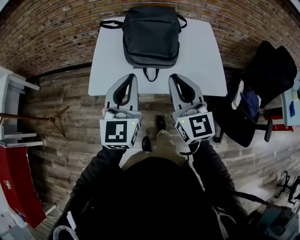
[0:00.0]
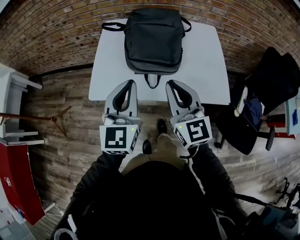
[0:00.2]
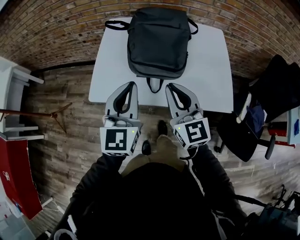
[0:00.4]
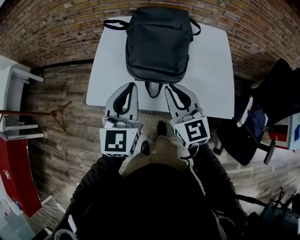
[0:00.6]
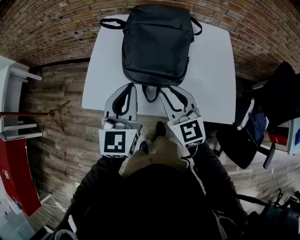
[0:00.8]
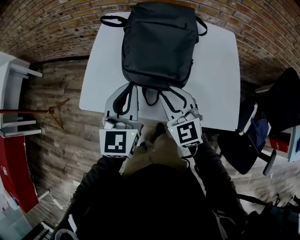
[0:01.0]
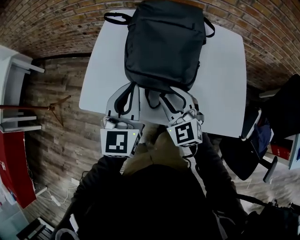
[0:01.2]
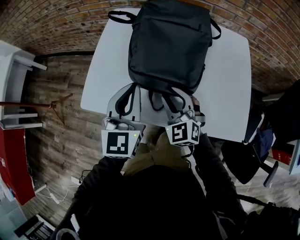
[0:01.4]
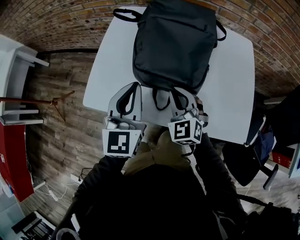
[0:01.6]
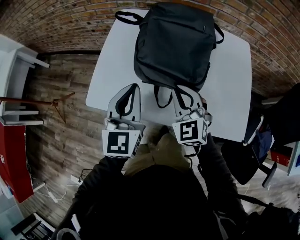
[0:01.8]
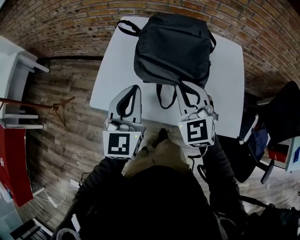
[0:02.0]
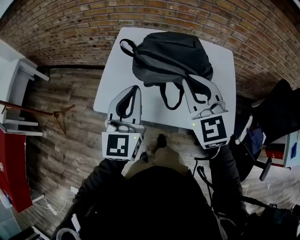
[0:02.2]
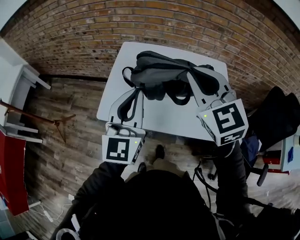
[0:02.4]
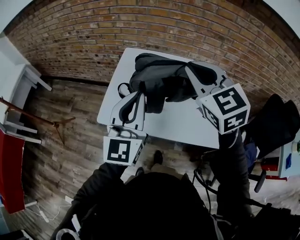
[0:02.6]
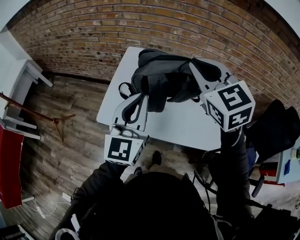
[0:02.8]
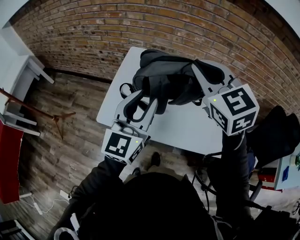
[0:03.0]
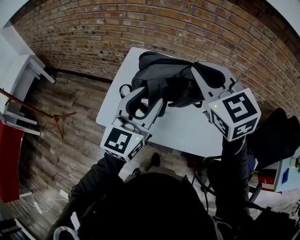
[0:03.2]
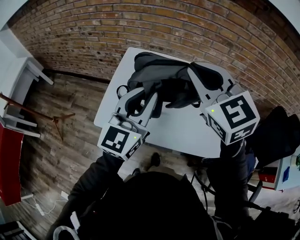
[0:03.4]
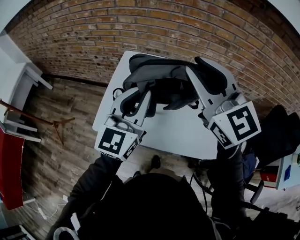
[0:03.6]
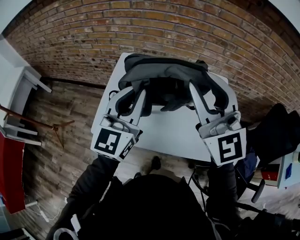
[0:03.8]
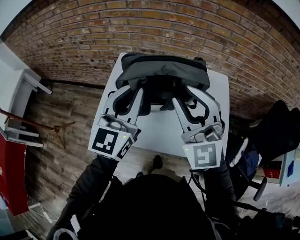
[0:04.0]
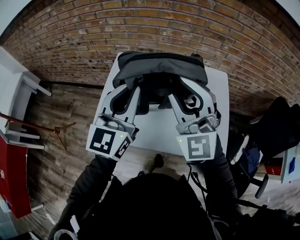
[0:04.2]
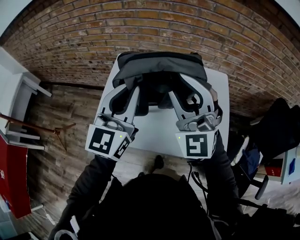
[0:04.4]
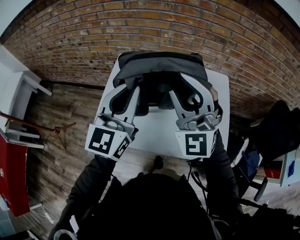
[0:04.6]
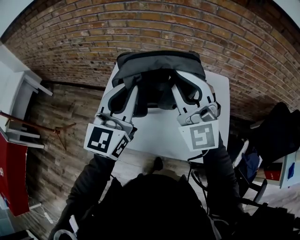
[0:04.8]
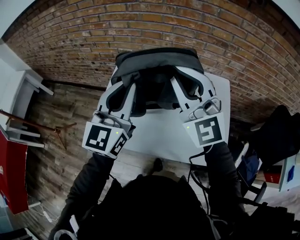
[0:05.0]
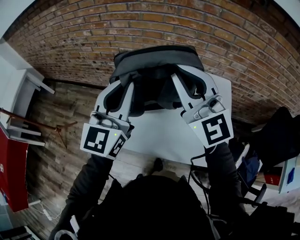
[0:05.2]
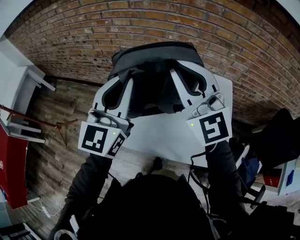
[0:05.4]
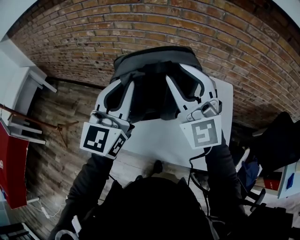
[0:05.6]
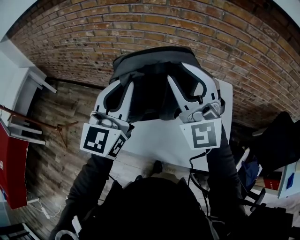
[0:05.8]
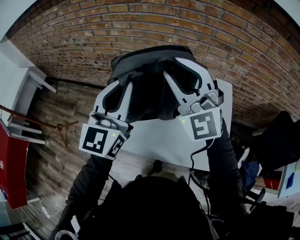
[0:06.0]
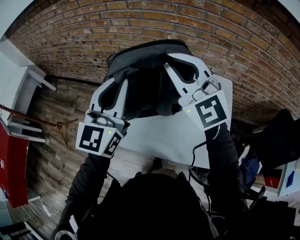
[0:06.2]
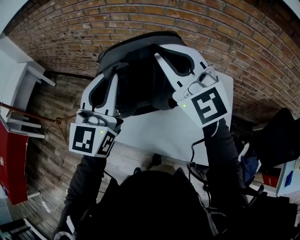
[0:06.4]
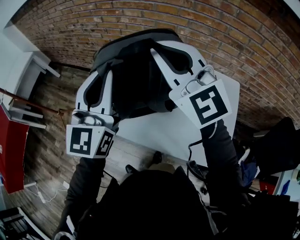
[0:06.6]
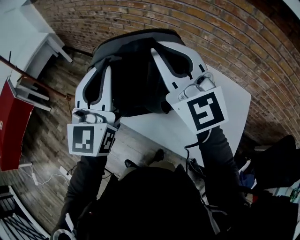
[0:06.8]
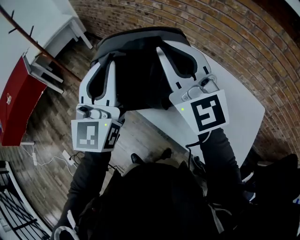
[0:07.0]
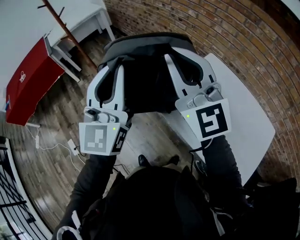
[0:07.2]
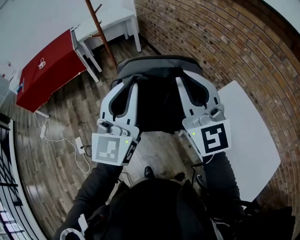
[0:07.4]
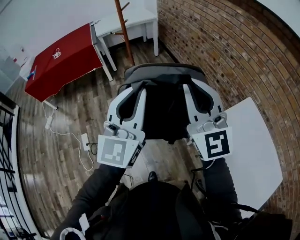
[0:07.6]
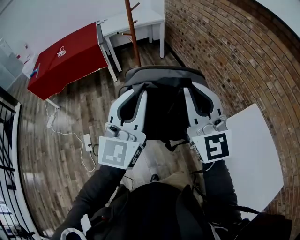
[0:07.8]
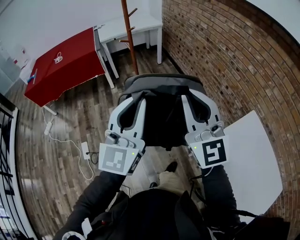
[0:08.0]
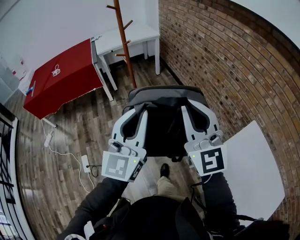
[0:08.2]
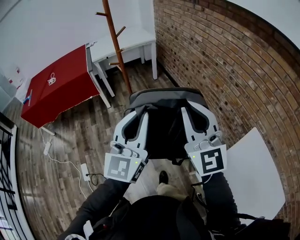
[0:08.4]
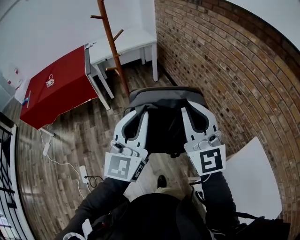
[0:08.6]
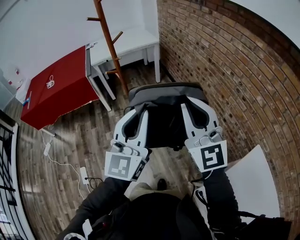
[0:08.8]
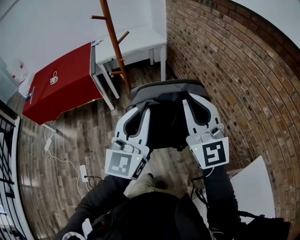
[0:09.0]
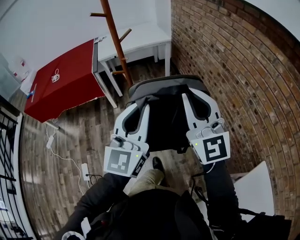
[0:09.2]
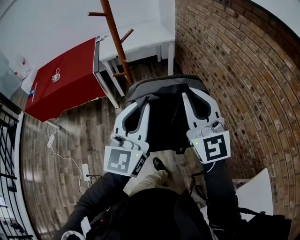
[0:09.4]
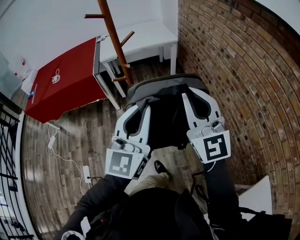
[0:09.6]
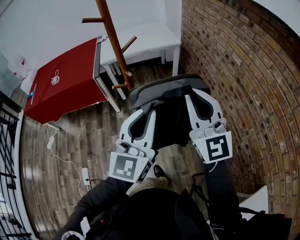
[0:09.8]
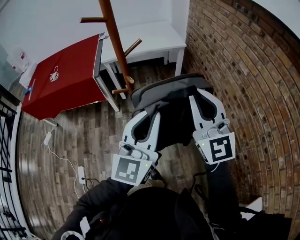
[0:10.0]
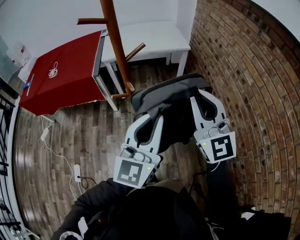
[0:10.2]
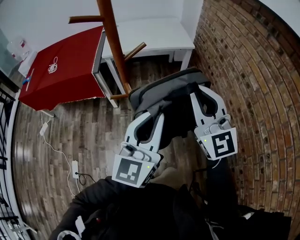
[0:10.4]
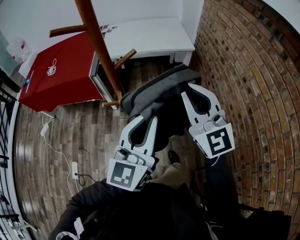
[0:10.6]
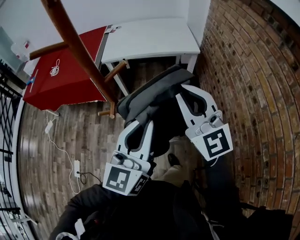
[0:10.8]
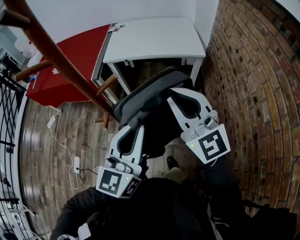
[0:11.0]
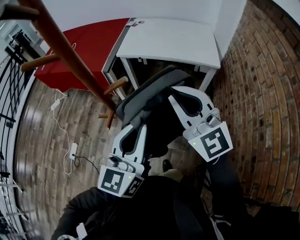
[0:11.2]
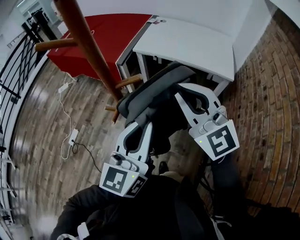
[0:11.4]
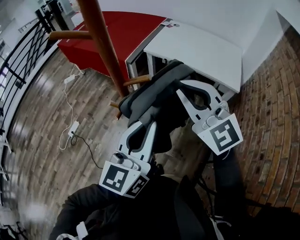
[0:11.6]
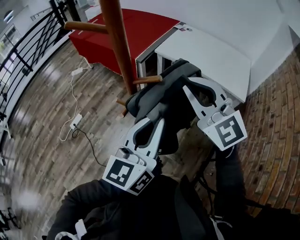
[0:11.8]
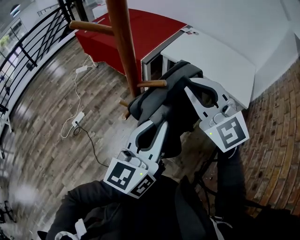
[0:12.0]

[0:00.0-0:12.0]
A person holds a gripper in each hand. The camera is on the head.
0:00.0 to 0:01.6: The left gripper moves forward and downward, about 20 cm; the right gripper shifts about 30 cm downward and forward, rotates some 40 degrees, and opens, then closes again.
0:01.6 to 0:03.0: The left gripper shifts roughly 20 cm upward, and opens. Meanwhile the right gripper travels upward by about 35 cm.
0:03.0 to 0:04.4: The left gripper travels forward by approximately 10 cm. Meanwhile the right gripper changes its angle by about 40 degrees, and opens.
0:04.4 to 0:06.0: The right gripper is displaced forward by about 5 cm, and closes, then reopens.
0:06.0 to 0:07.6: Both grippers are carried about 60 cm. The right gripper rotates approximately 60 degrees, and closes up, while the left gripper rotates some 50 degrees.
0:07.6 to 0:09.0: Both grippers travel together forward, roughly 35 cm.
0:09.0 to 0:10.4: The grippers both shift forward by roughly 35 cm.
0:10.4 to 0:12.0: The left gripper moves approximately 15 cm, and changes its angle by about 40 degrees, while the right gripper ends up about 20 cm from where it was, and rotates about 60 degrees.

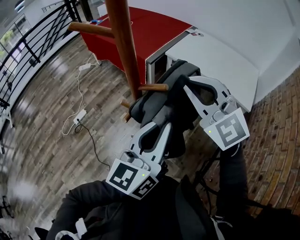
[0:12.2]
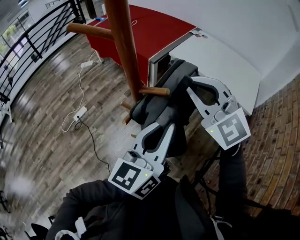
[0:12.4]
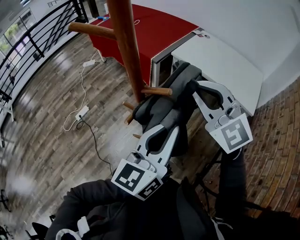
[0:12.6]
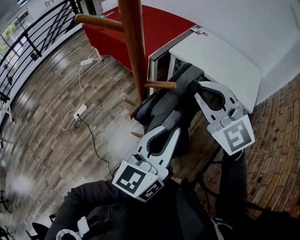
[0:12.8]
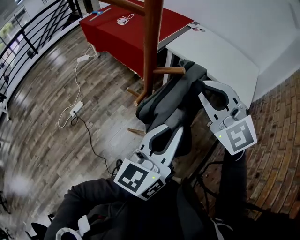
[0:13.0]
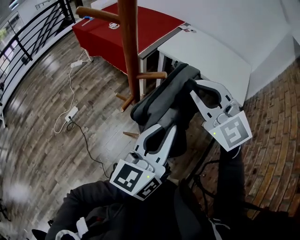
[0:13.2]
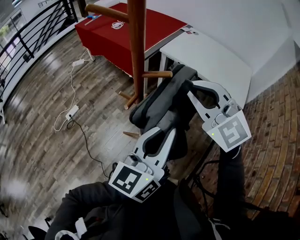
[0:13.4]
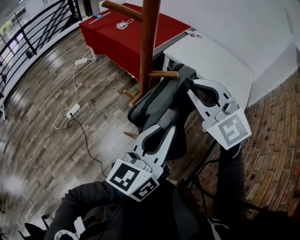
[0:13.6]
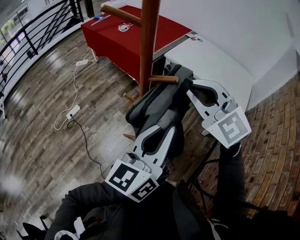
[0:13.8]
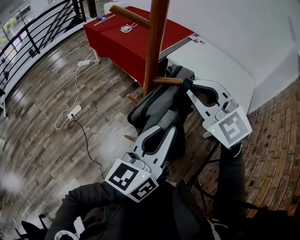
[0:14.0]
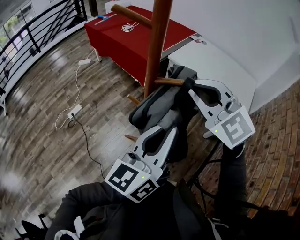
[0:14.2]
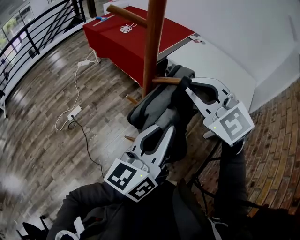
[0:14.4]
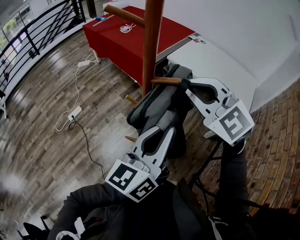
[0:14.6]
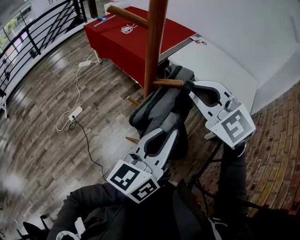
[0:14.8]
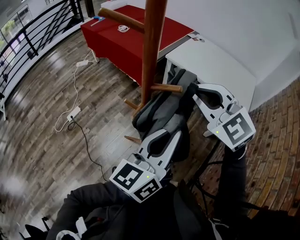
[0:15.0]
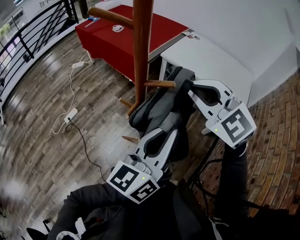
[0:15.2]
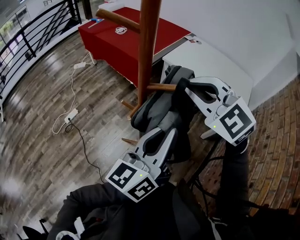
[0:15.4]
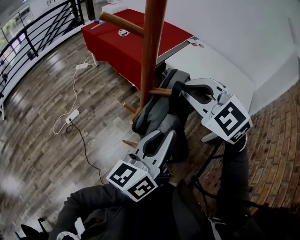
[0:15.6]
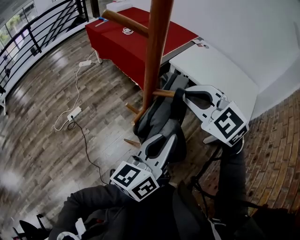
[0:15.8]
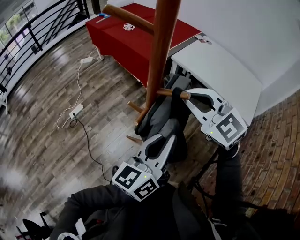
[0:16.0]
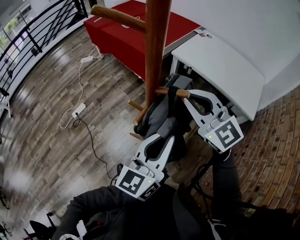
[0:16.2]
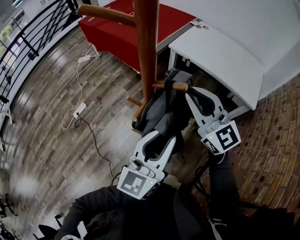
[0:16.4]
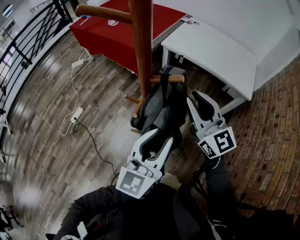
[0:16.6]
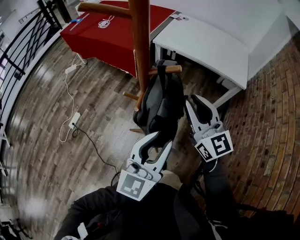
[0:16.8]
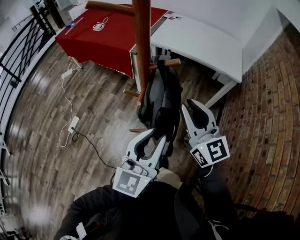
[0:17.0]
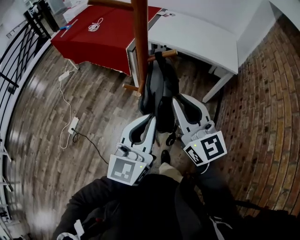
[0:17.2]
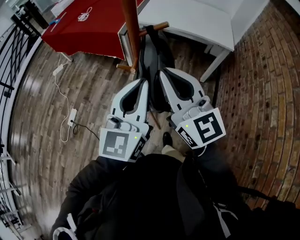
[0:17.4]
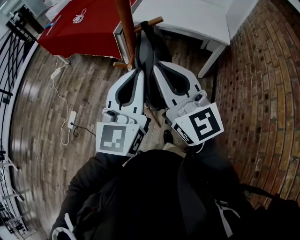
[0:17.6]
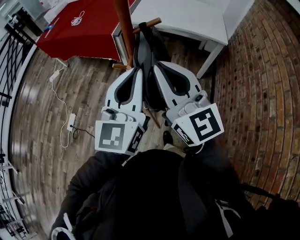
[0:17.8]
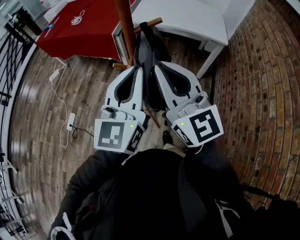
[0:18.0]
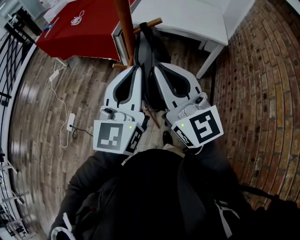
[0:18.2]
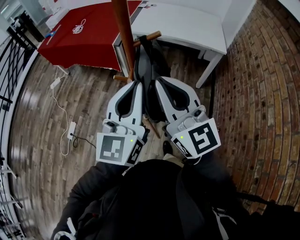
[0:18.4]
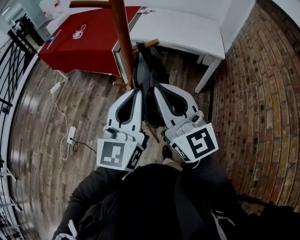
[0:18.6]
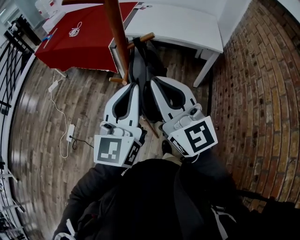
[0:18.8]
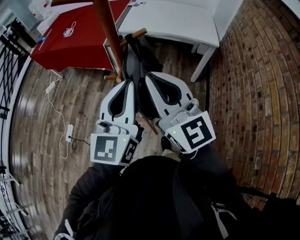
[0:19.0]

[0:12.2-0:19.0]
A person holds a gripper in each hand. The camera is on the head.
0:12.2 to 0:15.0: The grippers move only a little.
0:15.0 to 0:16.2: The left gripper shifts roughly 5 cm downward; the right gripper shifts by approximately 5 cm, and swivels about 20 degrees.
0:16.2 to 0:17.6: The right gripper is displaced backward by about 15 cm, and swivels about 40 degrees, while the left gripper shifts about 10 cm to the left and upward, and rotates about 20 degrees.
0:17.6 to 0:19.0: Both grippers stay put.

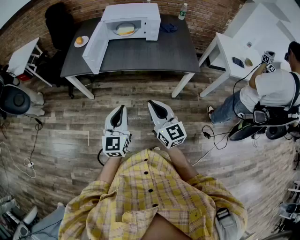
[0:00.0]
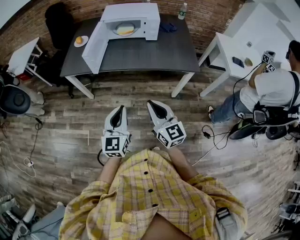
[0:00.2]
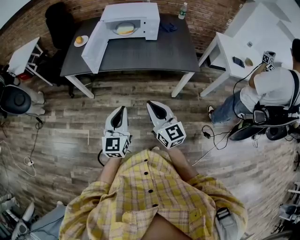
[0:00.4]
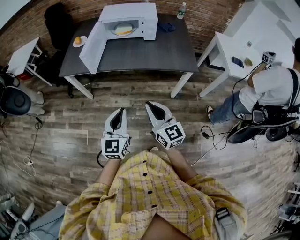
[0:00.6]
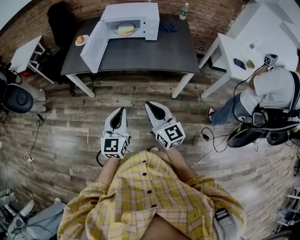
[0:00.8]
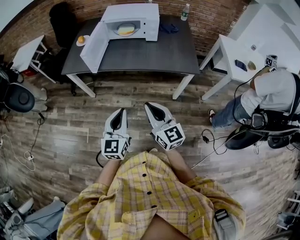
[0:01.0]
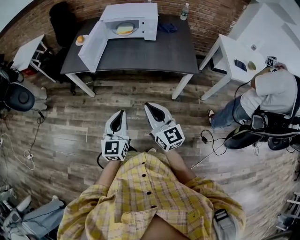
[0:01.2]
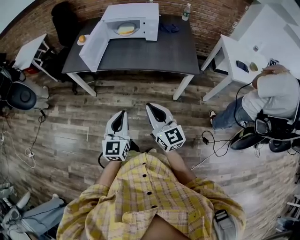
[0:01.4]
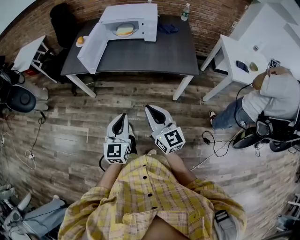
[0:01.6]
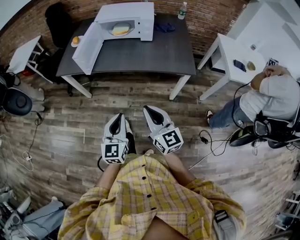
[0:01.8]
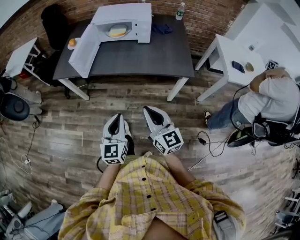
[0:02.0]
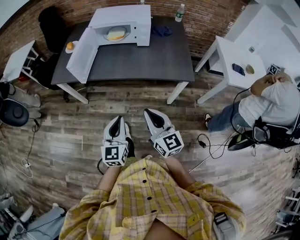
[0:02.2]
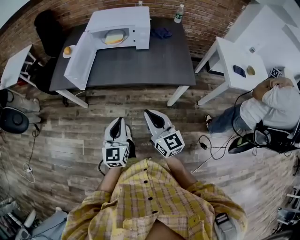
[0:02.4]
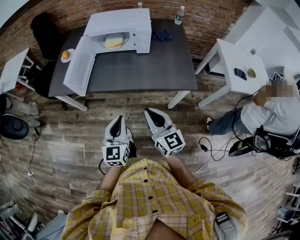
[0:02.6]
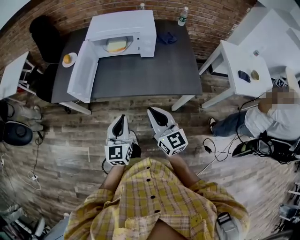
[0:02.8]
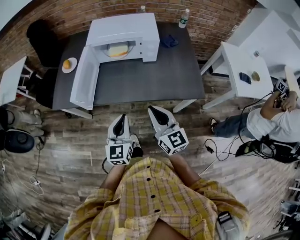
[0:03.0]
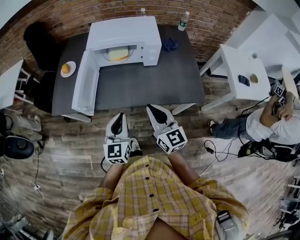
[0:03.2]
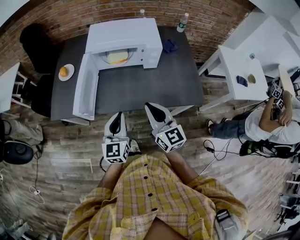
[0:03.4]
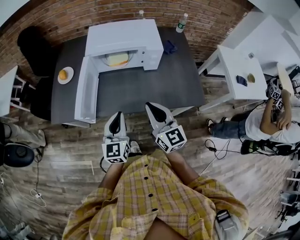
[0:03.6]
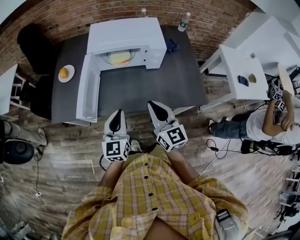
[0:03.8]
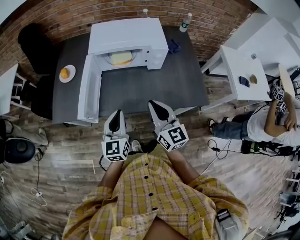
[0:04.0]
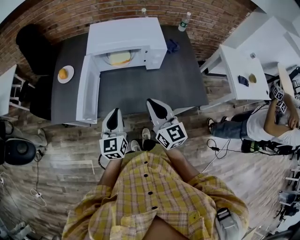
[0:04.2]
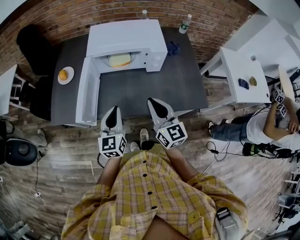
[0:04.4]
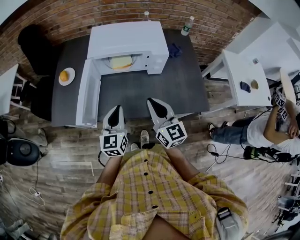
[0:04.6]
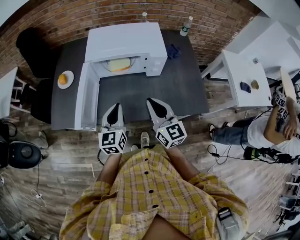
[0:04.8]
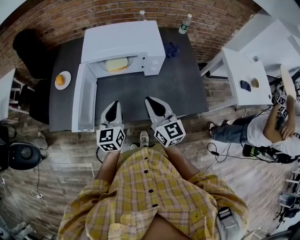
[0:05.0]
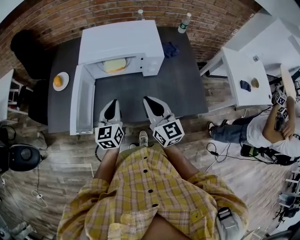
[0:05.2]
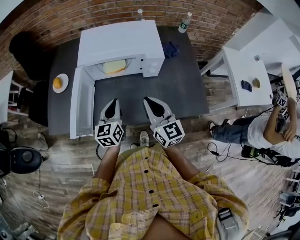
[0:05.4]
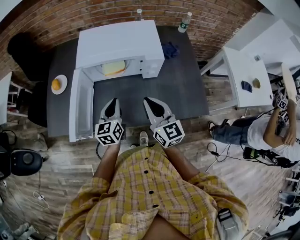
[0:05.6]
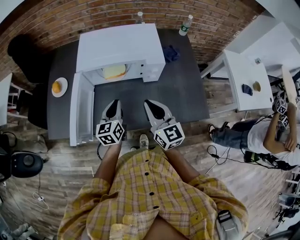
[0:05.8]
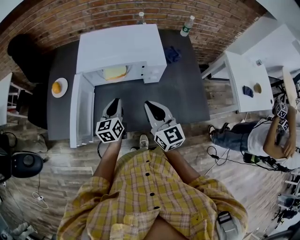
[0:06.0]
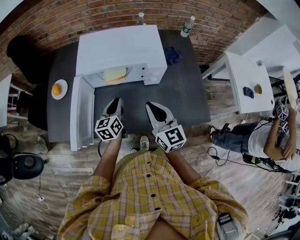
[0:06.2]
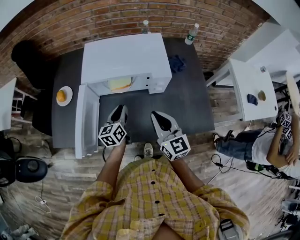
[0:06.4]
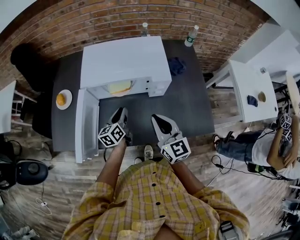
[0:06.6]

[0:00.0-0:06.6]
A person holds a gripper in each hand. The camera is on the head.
0:00.0 to 0:01.6: Both grippers move to the right, approximately 10 cm.
0:01.6 to 0:03.2: The two grippers go about 30 cm forward.
0:03.2 to 0:05.0: Both grippers move forward, roughly 15 cm.
0:05.0 to 0:06.6: The right gripper is displaced forward by some 5 cm. The left gripper is displaced forward and downward by some 20 cm, and swivels approximately 30 degrees.
